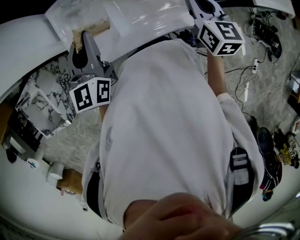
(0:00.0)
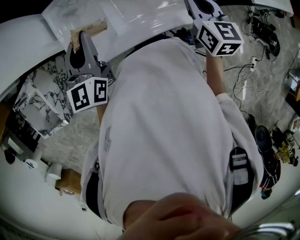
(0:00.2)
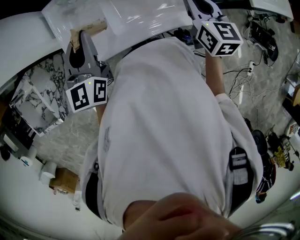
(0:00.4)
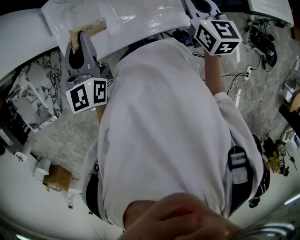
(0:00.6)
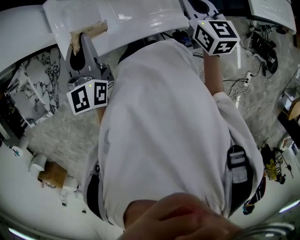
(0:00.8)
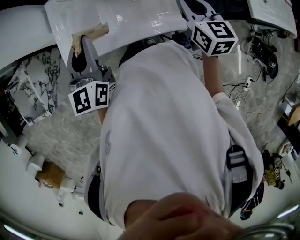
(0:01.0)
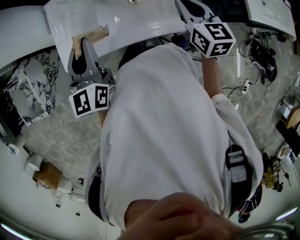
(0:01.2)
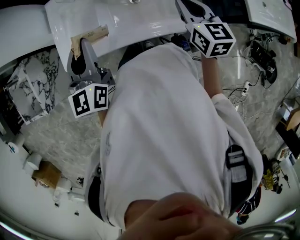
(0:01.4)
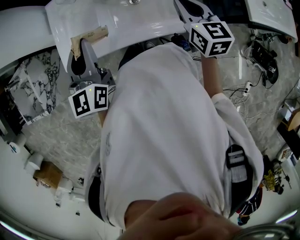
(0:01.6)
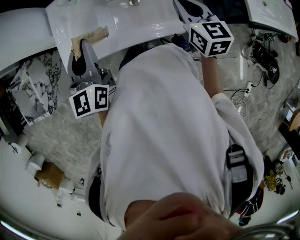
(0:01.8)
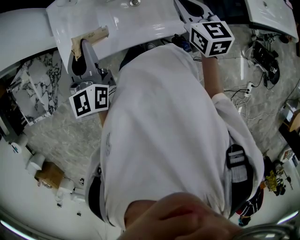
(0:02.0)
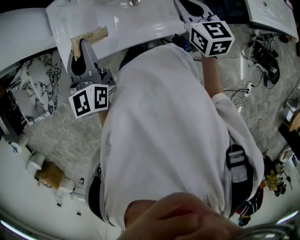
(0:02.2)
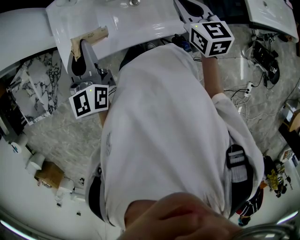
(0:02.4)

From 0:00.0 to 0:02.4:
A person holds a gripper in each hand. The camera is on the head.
From 0:00.0 to 0:01.2: The left gripper goes approximately 10 cm backward and to the right.
From 0:01.2 to 0:02.4: Both grippers stay put.

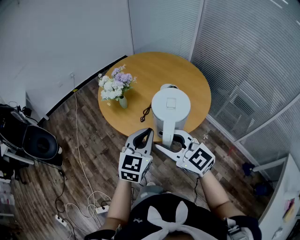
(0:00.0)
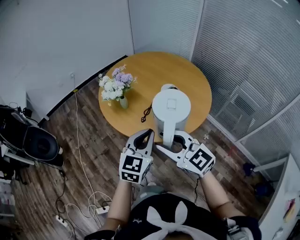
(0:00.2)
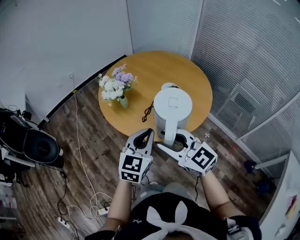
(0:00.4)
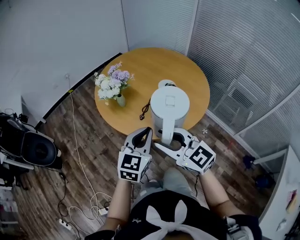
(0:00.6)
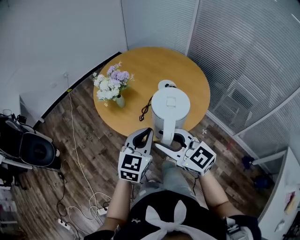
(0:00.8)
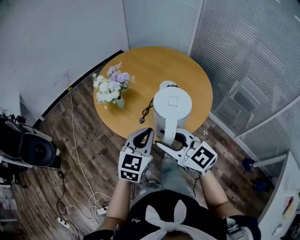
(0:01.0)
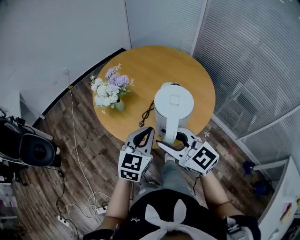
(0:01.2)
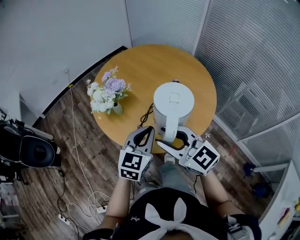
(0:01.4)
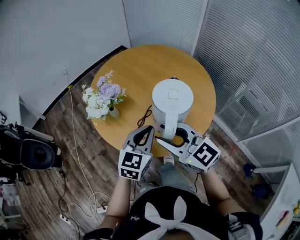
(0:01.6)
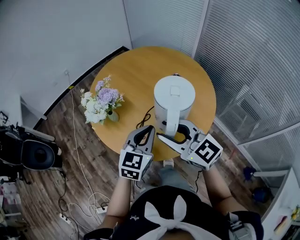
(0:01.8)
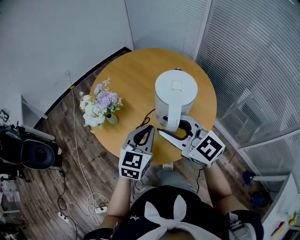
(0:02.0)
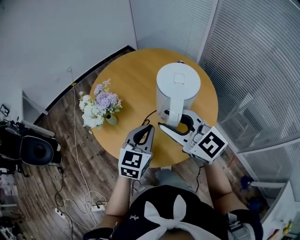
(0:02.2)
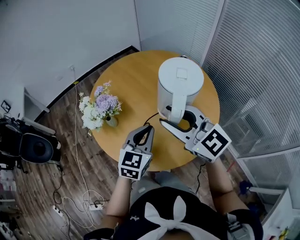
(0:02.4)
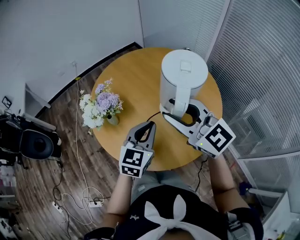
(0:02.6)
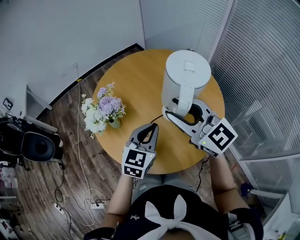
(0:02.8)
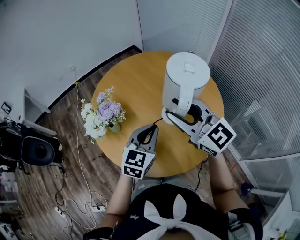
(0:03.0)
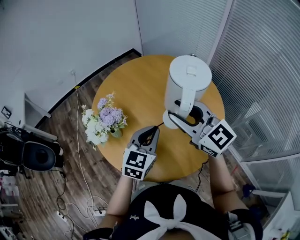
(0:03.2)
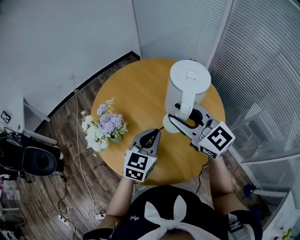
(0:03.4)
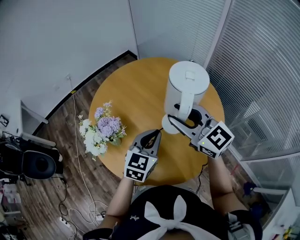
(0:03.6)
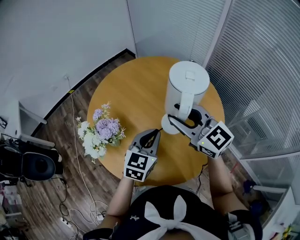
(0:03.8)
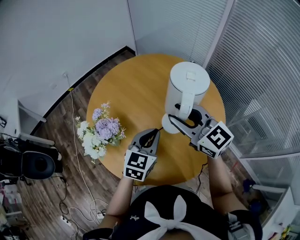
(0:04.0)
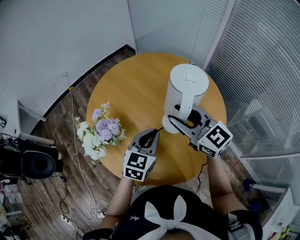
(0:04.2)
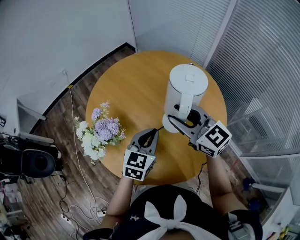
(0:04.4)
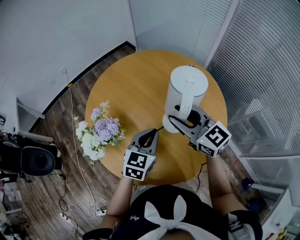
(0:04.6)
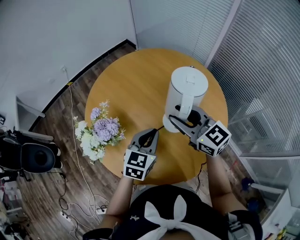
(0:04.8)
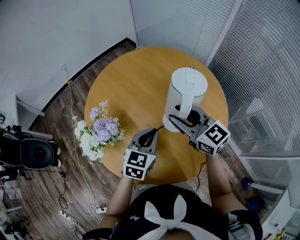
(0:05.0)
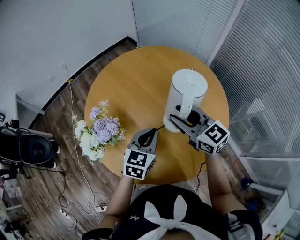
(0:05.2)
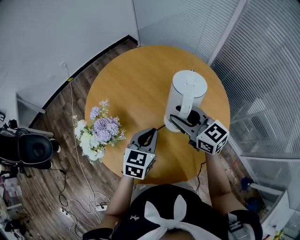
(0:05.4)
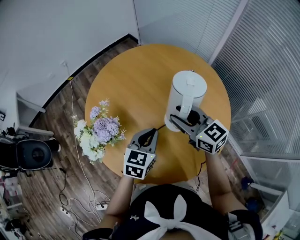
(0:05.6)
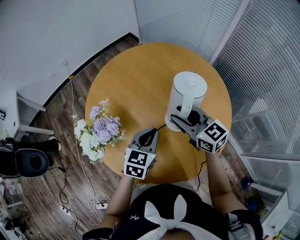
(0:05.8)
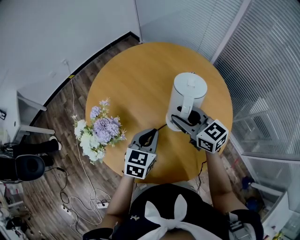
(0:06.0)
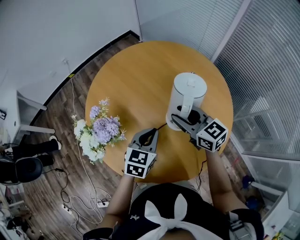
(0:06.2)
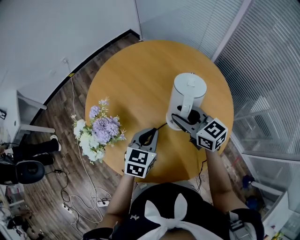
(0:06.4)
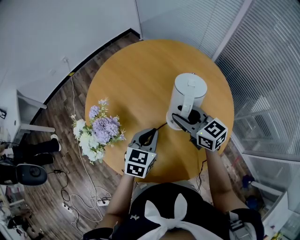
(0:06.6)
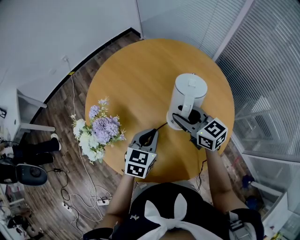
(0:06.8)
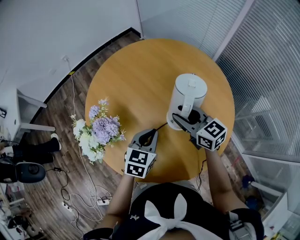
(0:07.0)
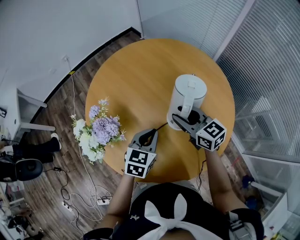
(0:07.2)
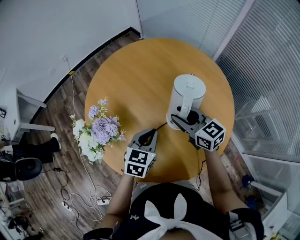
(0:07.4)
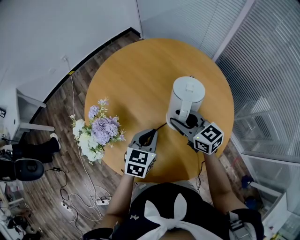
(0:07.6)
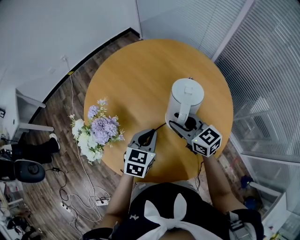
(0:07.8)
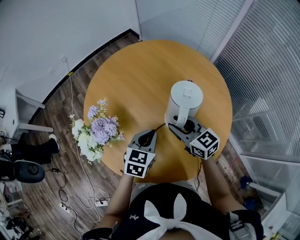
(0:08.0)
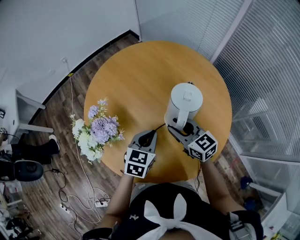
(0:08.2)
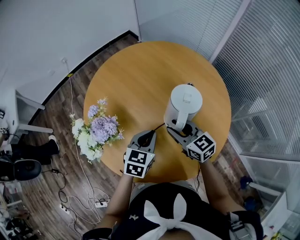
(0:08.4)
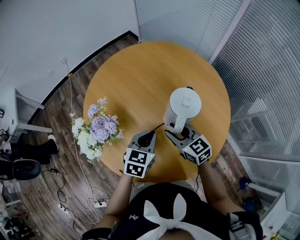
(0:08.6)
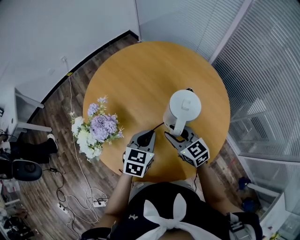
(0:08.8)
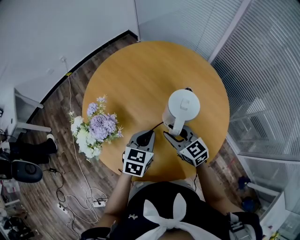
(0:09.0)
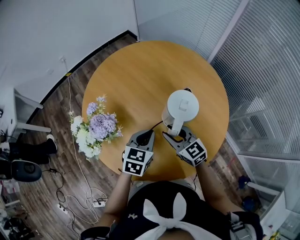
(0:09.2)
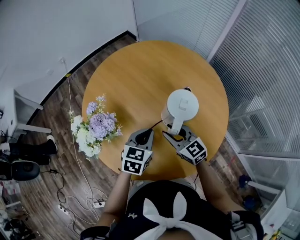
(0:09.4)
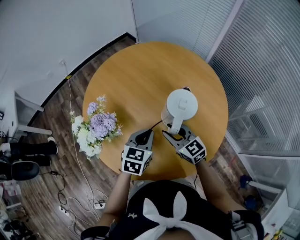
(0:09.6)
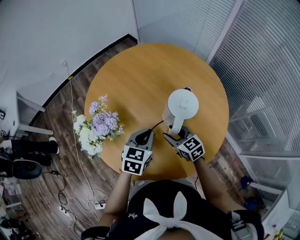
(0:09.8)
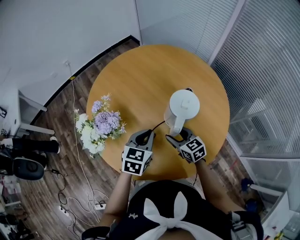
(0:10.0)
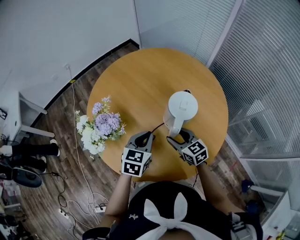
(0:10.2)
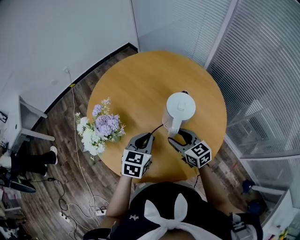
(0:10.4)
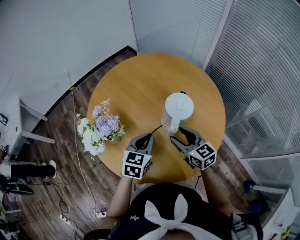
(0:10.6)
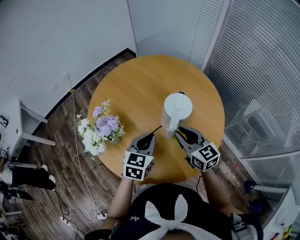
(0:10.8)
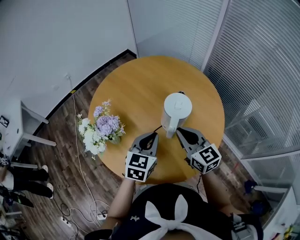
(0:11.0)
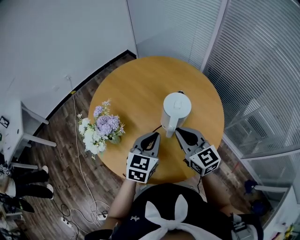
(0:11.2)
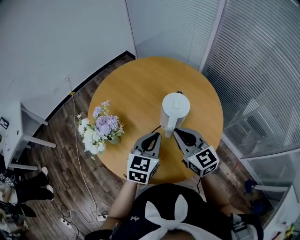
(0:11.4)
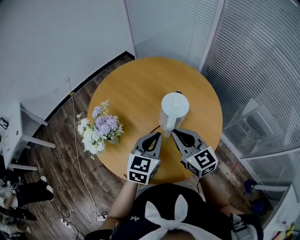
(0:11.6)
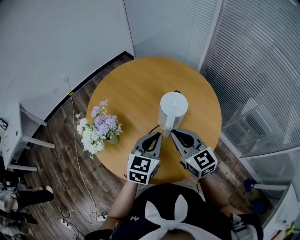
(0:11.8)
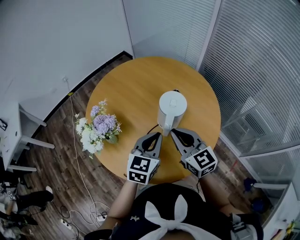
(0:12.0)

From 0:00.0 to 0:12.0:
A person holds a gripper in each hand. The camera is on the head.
From 0:00.0 to 0:01.6: Both grippers move forward and to the right, some 15 cm.
From 0:01.6 to 0:03.0: Both grippers travel together forward and to the right, about 15 cm.
From 0:03.0 to 0:04.4: The right gripper travels forward and downward by about 10 cm, while the left gripper goes approximately 5 cm forward.
From 0:04.4 to 0:06.0: The right gripper moves downward, approximately 10 cm, while the left gripper shifts by some 5 cm.
From 0:06.0 to 0:07.6: The grippers stay close to where they were, moving slightly.
From 0:07.6 to 0:09.0: The right gripper shifts about 5 cm backward.
From 0:10.4 to 0:12.0: The left gripper goes roughly 10 cm upward and to the right. The right gripper shifts roughly 15 cm upward, and closes up.

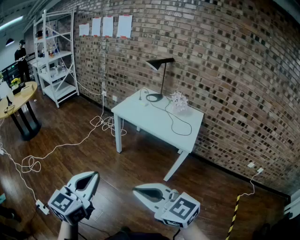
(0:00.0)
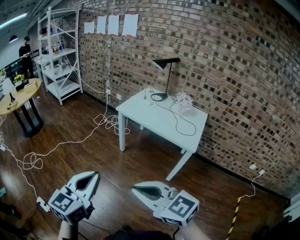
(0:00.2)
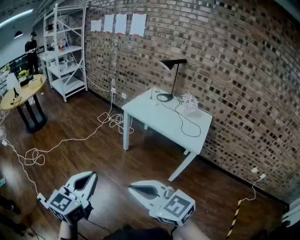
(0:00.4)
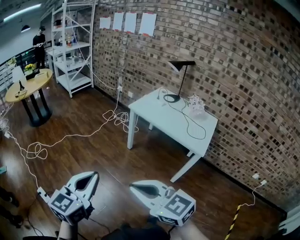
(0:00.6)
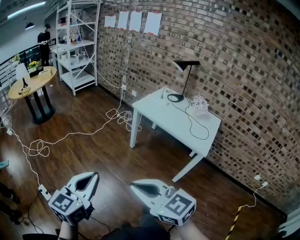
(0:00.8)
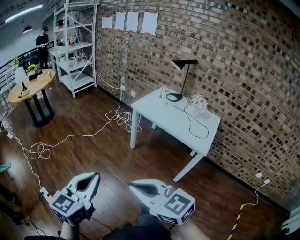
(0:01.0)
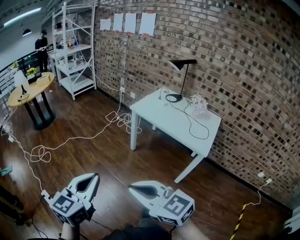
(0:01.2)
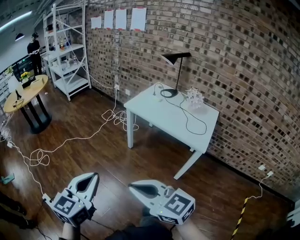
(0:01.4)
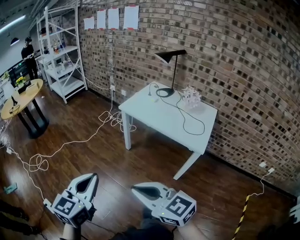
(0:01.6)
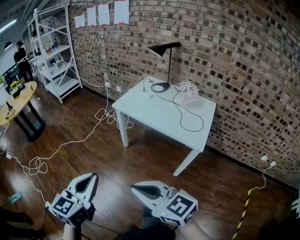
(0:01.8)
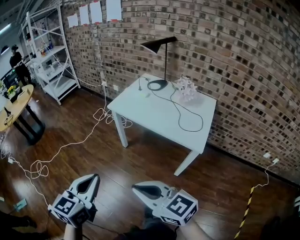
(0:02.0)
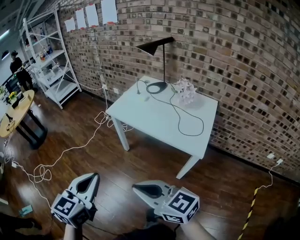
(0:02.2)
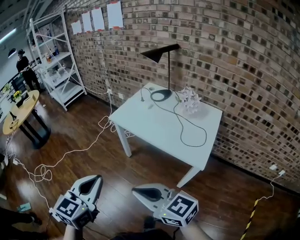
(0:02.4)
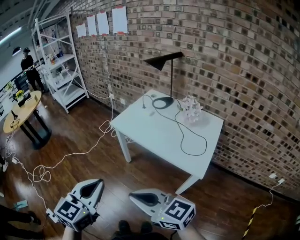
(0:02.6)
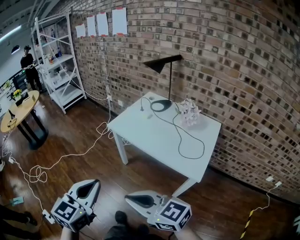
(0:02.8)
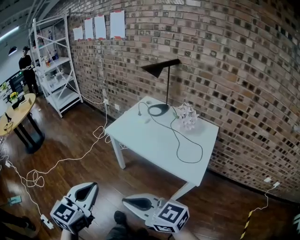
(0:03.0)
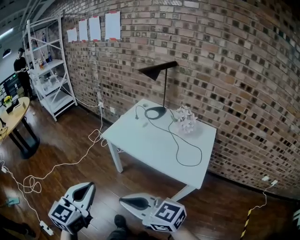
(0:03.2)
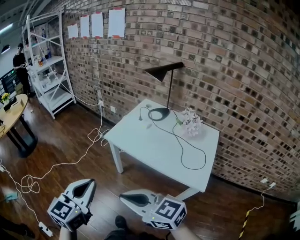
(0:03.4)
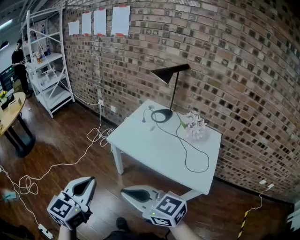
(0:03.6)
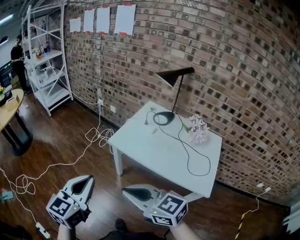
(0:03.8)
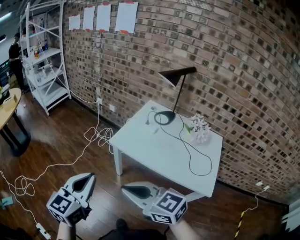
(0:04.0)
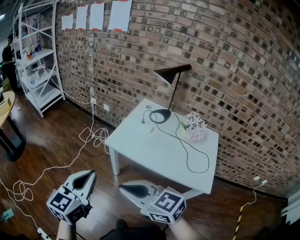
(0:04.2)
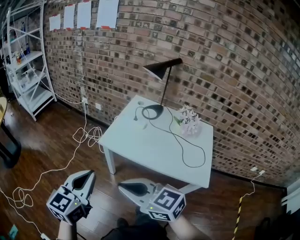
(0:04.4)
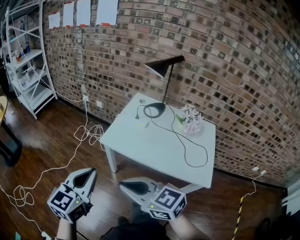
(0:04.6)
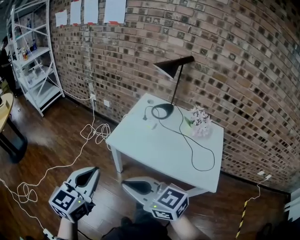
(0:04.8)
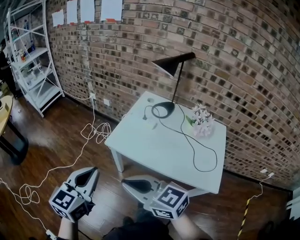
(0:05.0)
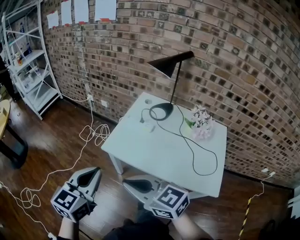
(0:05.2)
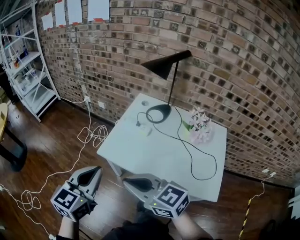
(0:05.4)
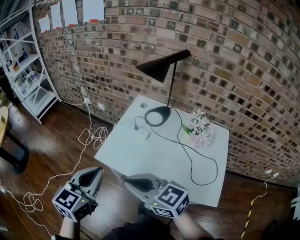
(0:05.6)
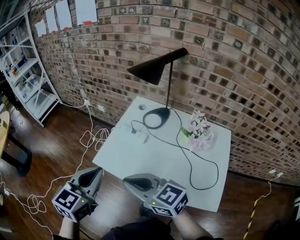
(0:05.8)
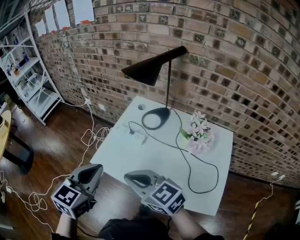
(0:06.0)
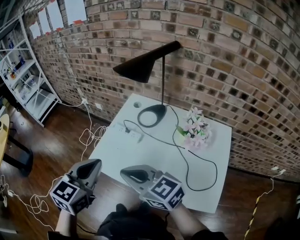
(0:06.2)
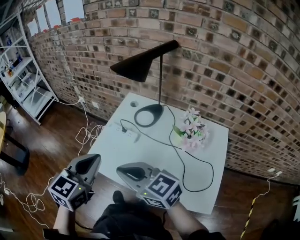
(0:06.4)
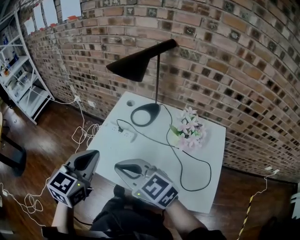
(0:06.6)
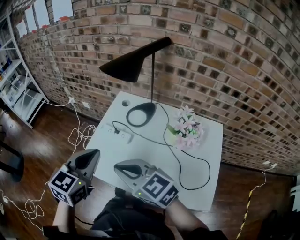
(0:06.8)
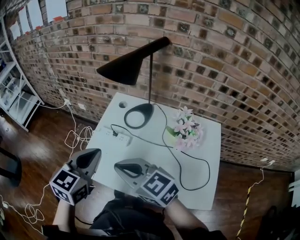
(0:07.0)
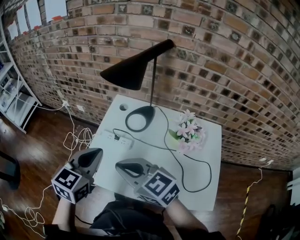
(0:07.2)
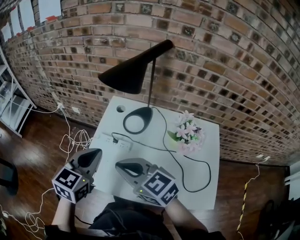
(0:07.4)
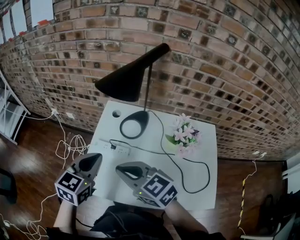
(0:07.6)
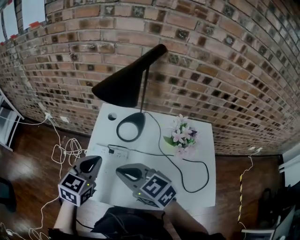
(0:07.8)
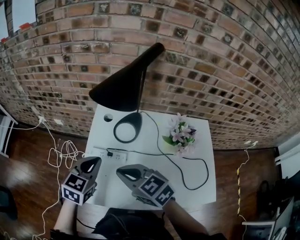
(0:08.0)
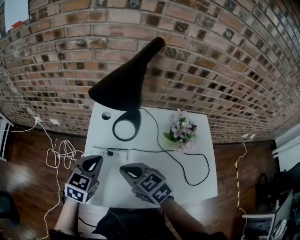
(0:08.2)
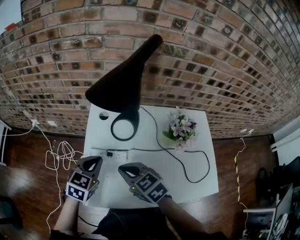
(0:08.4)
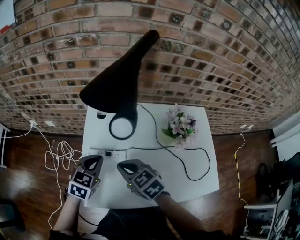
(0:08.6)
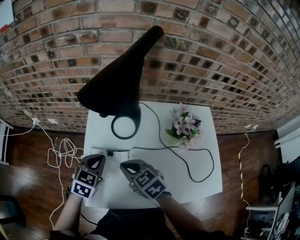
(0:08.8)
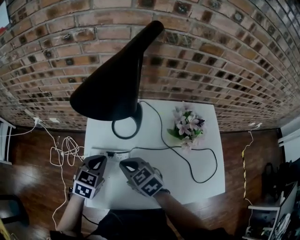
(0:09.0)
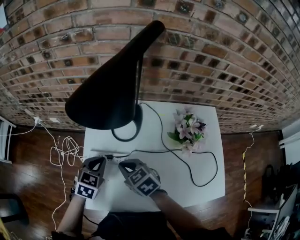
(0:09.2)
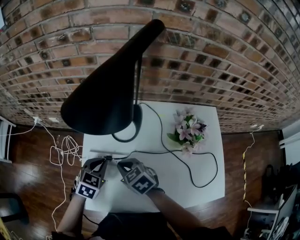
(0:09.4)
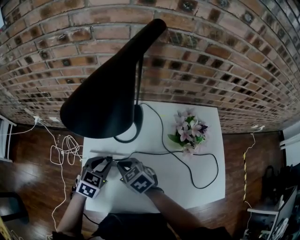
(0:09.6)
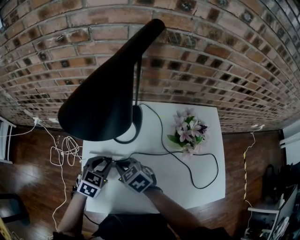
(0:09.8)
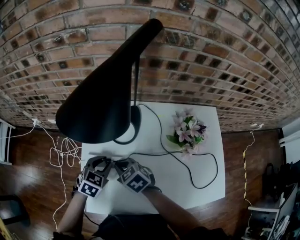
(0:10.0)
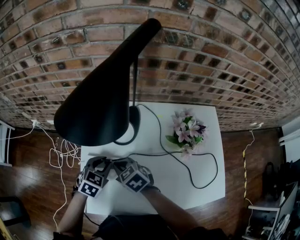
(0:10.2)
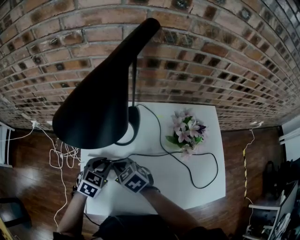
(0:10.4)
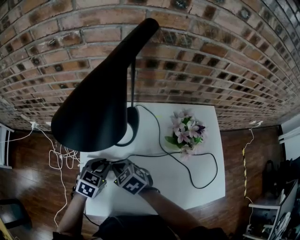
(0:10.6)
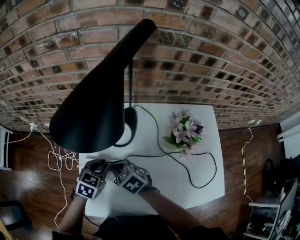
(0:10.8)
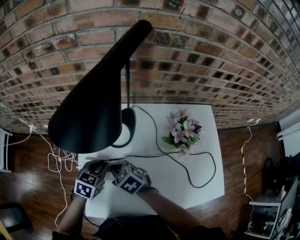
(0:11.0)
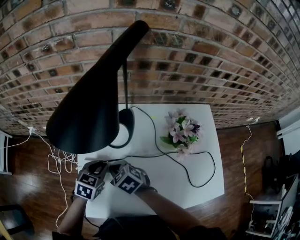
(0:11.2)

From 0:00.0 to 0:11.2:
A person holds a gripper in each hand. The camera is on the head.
From 0:00.0 to 0:01.6: The two grippers go roughly 5 cm forward. The right gripper travels to the left and back again, some 10 cm each way. The left gripper travels to the left and back again, approximately 10 cm each way.
From 0:01.6 to 0:03.2: The grippers both shift forward and to the right by some 20 cm.
From 0:03.2 to 0:04.8: Both grippers travel together forward, approximately 20 cm.
From 0:04.8 to 0:06.4: The right gripper shifts about 25 cm forward and to the right; the left gripper shifts roughly 25 cm to the right and forward.
From 0:06.4 to 0:08.0: The two grippers go approximately 20 cm forward and downward. The left gripper turns by roughly 20 degrees. The right gripper rotates approximately 30 degrees.
From 0:08.0 to 0:09.6: The left gripper goes some 15 cm downward, and opens up, while the right gripper is displaced downward and forward by roughly 20 cm.
From 0:09.6 to 0:11.2: There are only small adjustments of the grippers.
